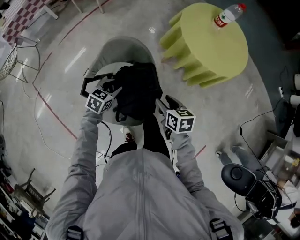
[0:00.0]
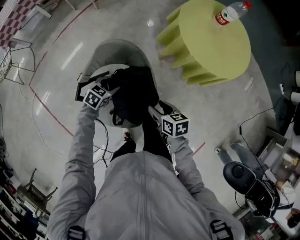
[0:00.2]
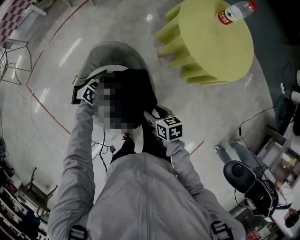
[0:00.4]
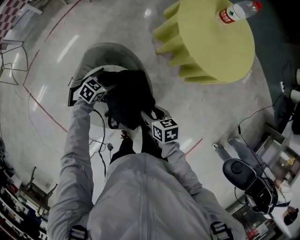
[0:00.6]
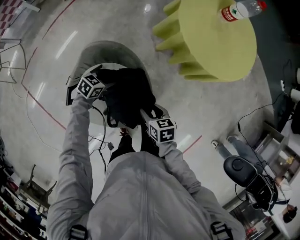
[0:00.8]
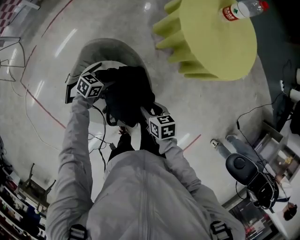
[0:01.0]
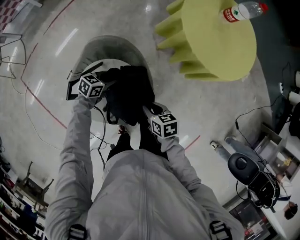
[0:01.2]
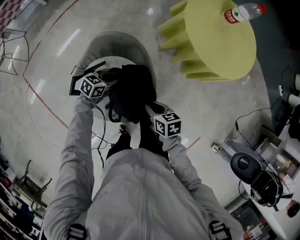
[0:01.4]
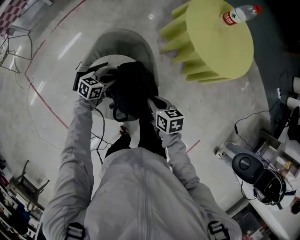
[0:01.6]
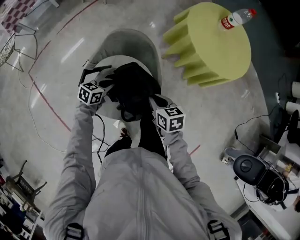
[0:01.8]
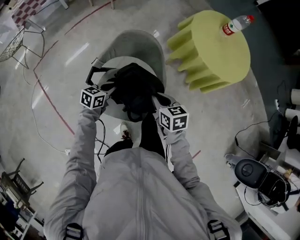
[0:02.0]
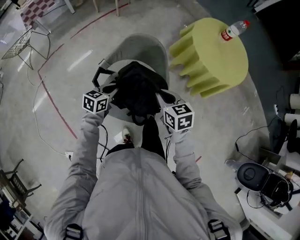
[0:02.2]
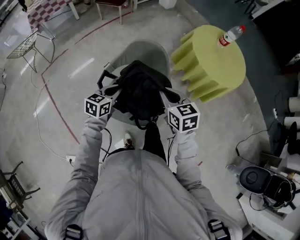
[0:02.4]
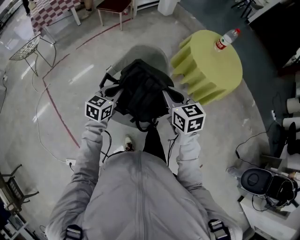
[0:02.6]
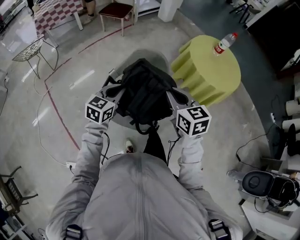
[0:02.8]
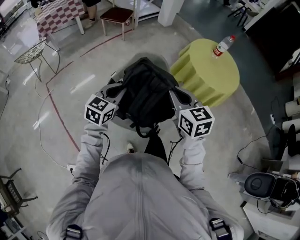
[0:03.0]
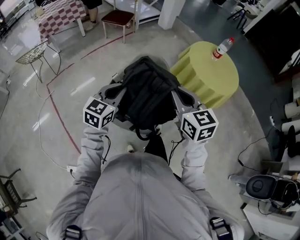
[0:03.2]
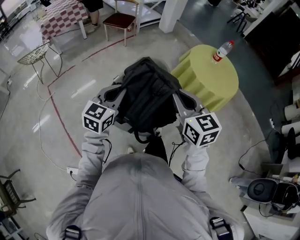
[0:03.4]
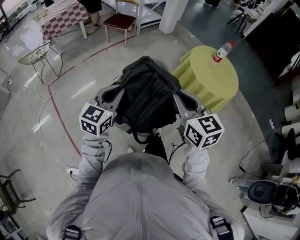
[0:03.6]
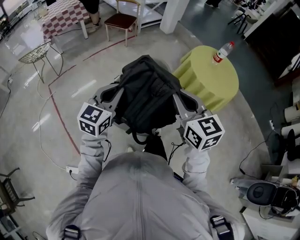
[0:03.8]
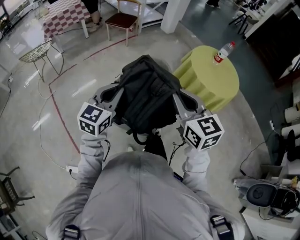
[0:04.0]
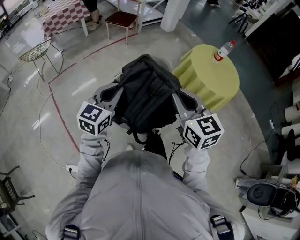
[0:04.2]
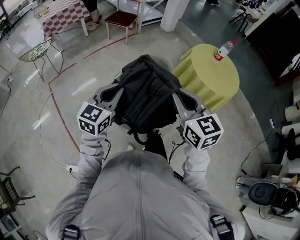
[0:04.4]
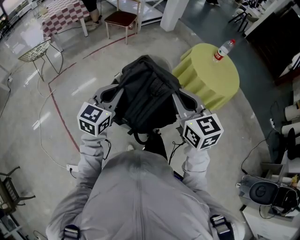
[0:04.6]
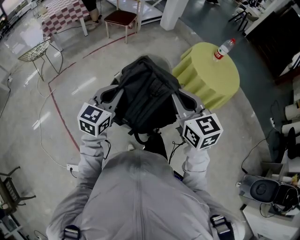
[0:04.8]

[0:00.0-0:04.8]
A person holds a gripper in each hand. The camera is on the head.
0:00.0 to 0:01.6: The left gripper moves downward, some 10 cm, swivels approximately 20 degrees, and closes up. The right gripper goes approximately 10 cm to the left and downward, and closes up.
0:01.6 to 0:03.2: The right gripper shifts some 35 cm upward, and changes its angle by roughly 40 degrees. Meanwhile the left gripper heads upward and backward, covering about 40 cm, and swivels approximately 40 degrees.
0:03.2 to 0:04.8: The left gripper shifts by about 5 cm.

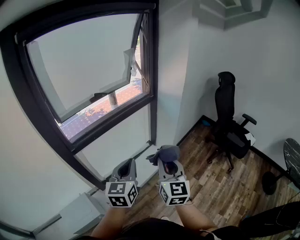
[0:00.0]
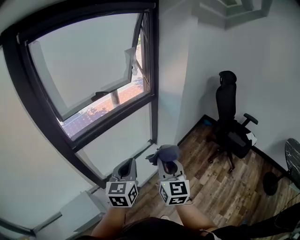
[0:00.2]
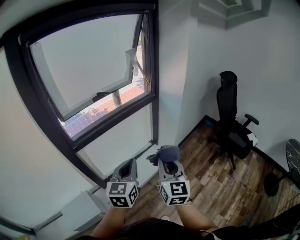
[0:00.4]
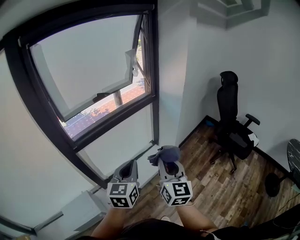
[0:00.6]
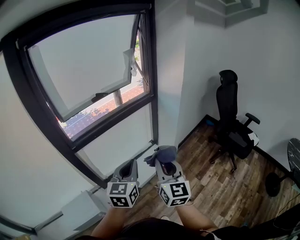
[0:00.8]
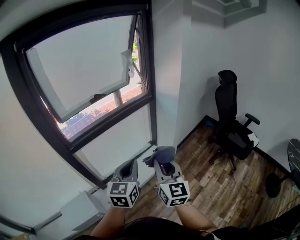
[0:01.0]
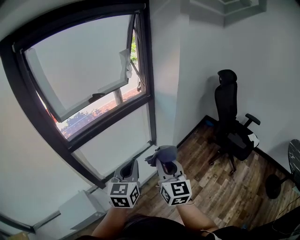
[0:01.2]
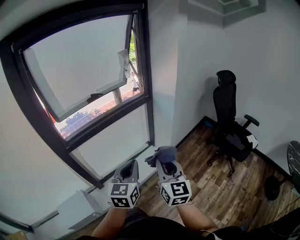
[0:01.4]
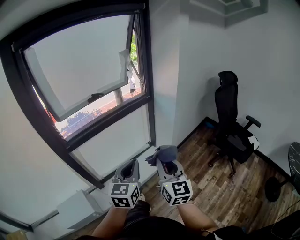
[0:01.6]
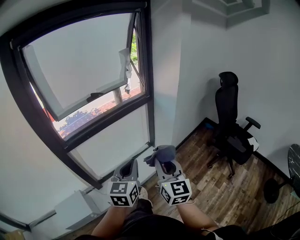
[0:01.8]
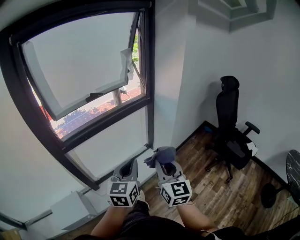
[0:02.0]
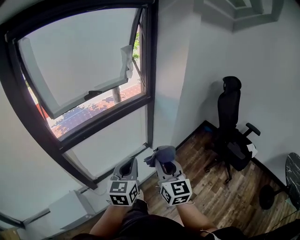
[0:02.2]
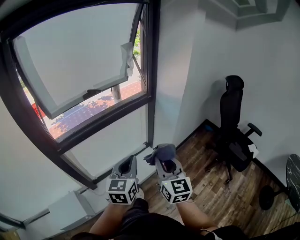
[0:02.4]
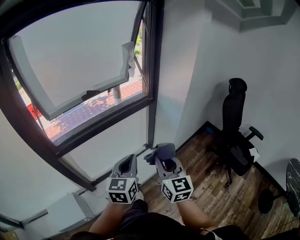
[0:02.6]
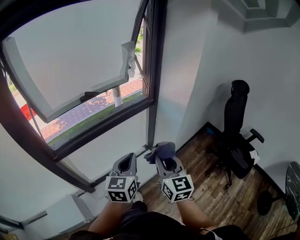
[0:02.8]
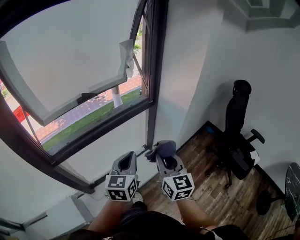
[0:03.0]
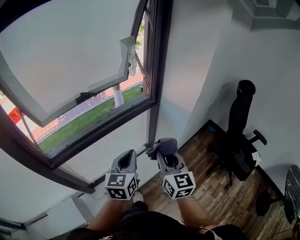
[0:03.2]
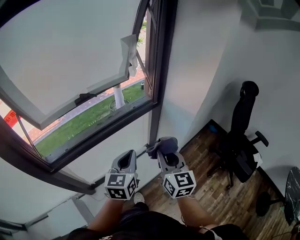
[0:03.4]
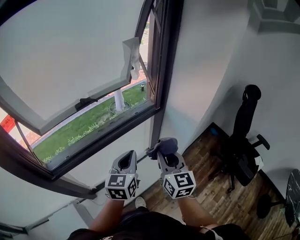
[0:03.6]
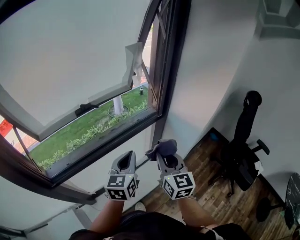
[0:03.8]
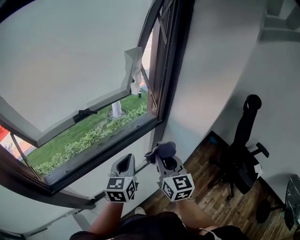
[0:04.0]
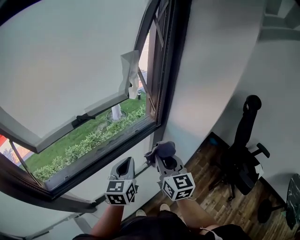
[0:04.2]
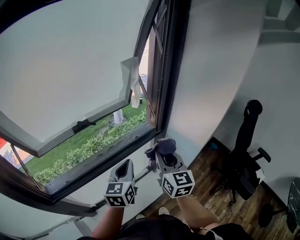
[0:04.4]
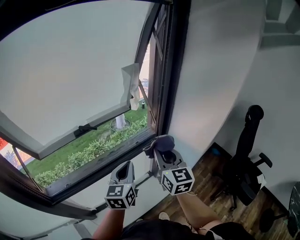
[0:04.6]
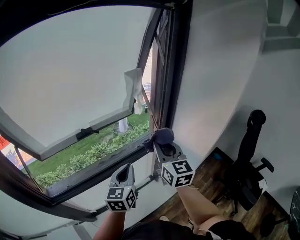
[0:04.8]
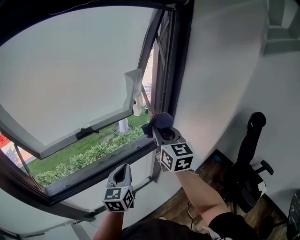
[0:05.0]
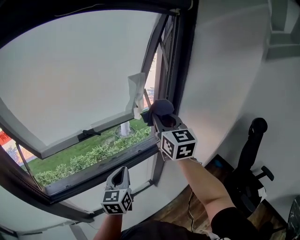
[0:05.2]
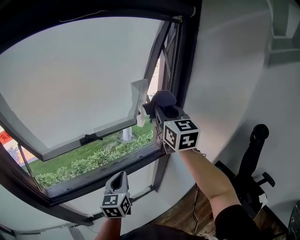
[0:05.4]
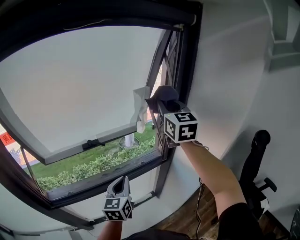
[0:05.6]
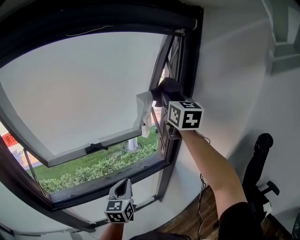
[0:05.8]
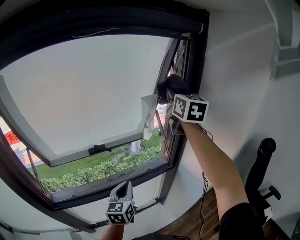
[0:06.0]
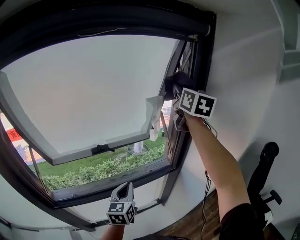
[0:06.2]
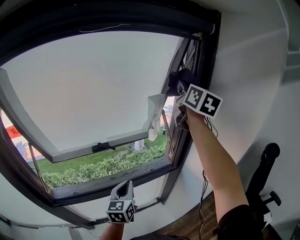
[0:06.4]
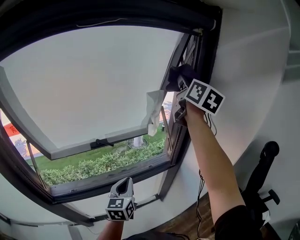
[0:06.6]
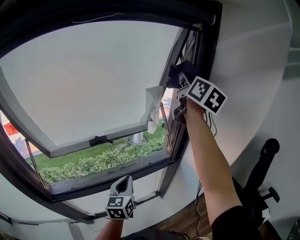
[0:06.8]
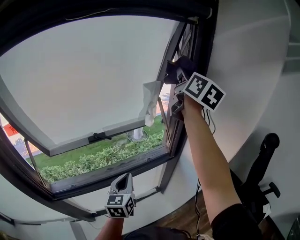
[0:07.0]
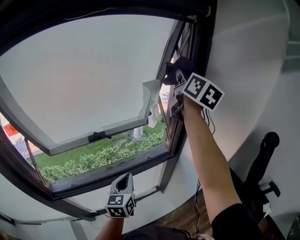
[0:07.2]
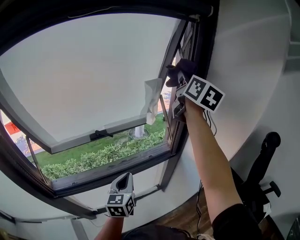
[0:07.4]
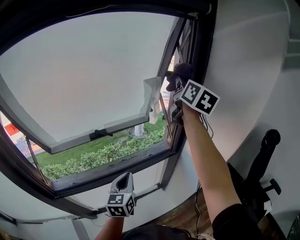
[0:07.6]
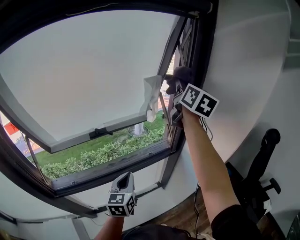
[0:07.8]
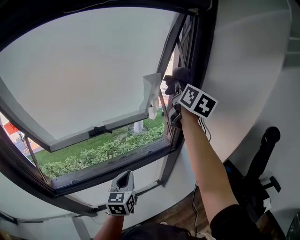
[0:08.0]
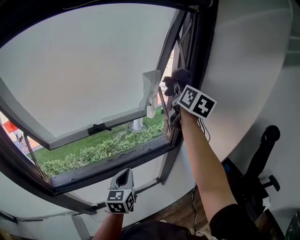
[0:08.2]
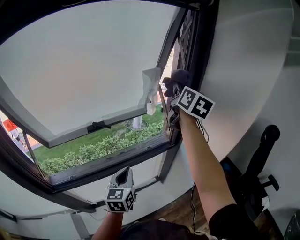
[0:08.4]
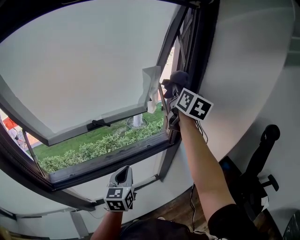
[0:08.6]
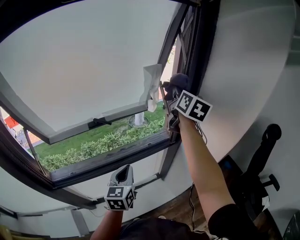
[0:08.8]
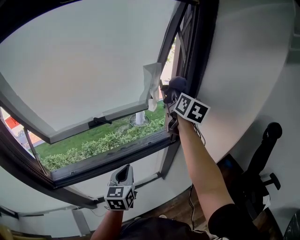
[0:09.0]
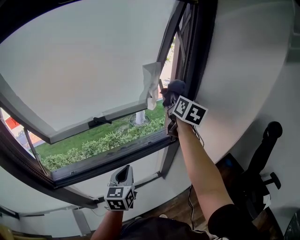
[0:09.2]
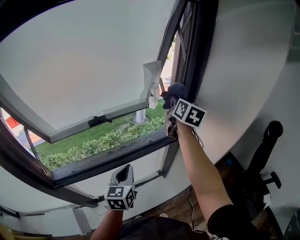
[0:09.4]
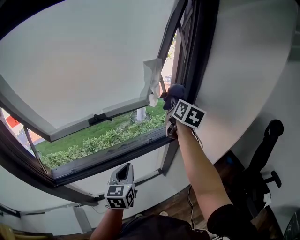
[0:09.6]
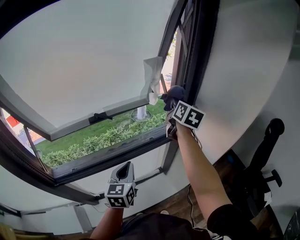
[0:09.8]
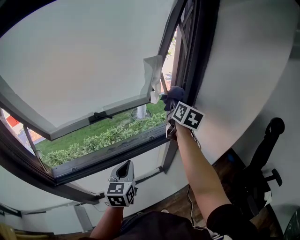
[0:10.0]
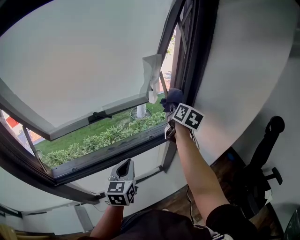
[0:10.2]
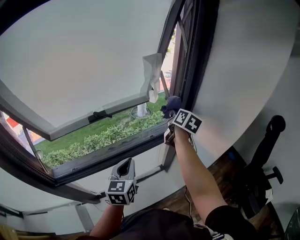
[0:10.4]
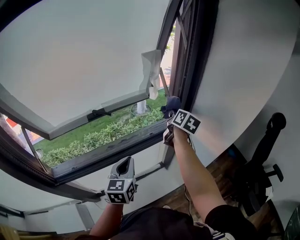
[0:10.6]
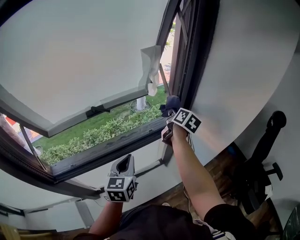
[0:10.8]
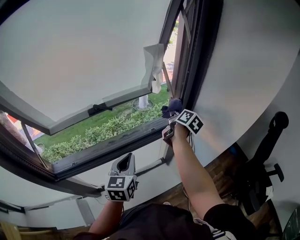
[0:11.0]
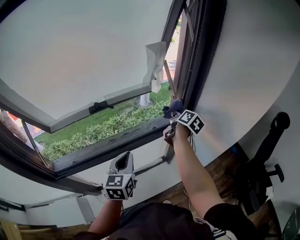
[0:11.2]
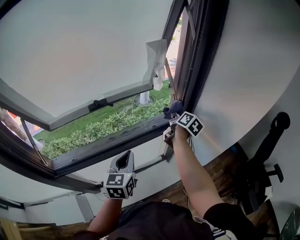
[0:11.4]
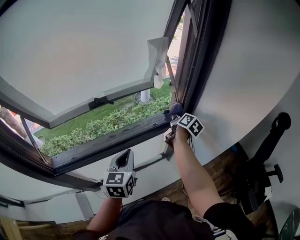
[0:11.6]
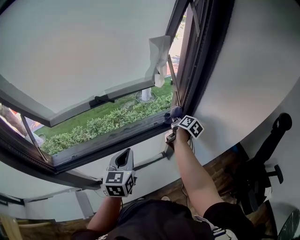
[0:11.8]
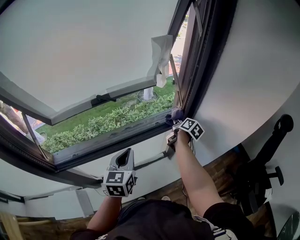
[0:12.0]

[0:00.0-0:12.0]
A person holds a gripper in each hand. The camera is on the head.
0:00.0 to 0:01.6: Both grippers move to the right, about 10 cm.
0:01.6 to 0:03.0: The two grippers go roughly 25 cm forward.
0:03.0 to 0:04.4: The two grippers go about 20 cm forward.
0:04.4 to 0:06.0: The right gripper travels upward and forward by roughly 40 cm.
0:06.0 to 0:07.6: The right gripper changes place by approximately 5 cm, and swivels roughly 20 degrees.
0:07.6 to 0:09.0: The right gripper shifts roughly 10 cm downward.
0:09.0 to 0:10.4: The right gripper heads downward, covering roughly 15 cm, and turns by roughly 20 degrees.
0:10.4 to 0:12.0: The right gripper is displaced downward by roughly 20 cm, and rotates some 30 degrees.

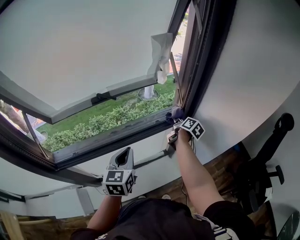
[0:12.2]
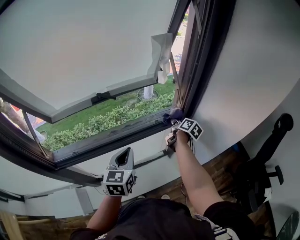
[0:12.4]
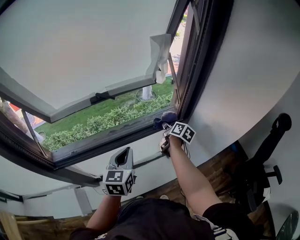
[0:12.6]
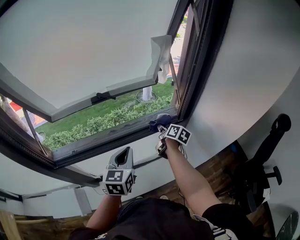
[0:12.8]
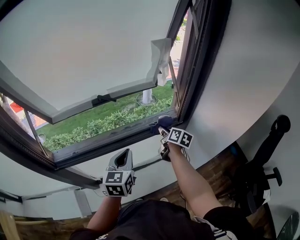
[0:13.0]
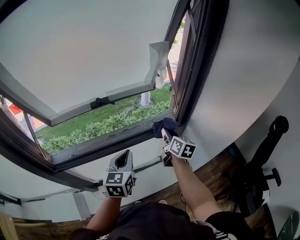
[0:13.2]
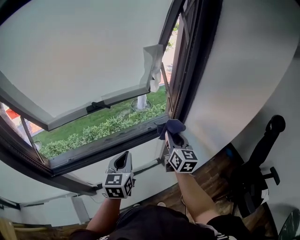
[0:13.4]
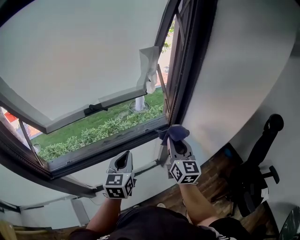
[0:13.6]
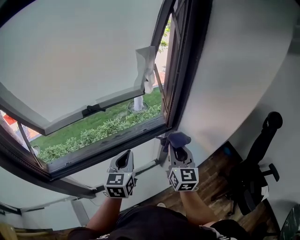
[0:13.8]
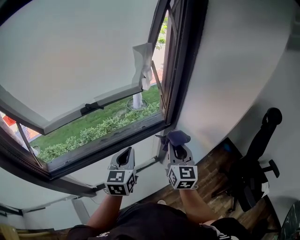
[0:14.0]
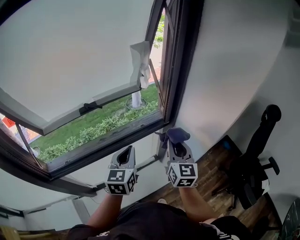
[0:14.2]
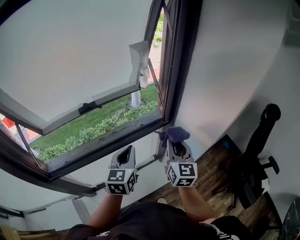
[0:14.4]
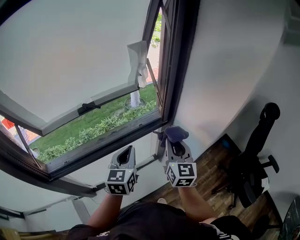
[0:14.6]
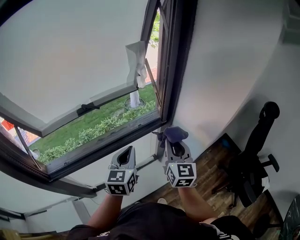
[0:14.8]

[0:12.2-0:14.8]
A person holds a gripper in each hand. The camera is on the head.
0:12.2 to 0:13.4: The right gripper is displaced upward and backward by some 20 cm, and rolls counterclockwise, seen from behind, by about 50 degrees.
0:13.4 to 0:14.8: The right gripper goes approximately 5 cm backward; the left gripper heads to the right, covering some 5 cm.

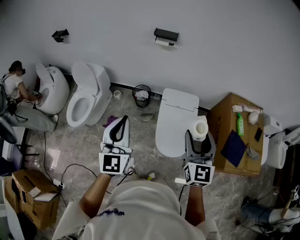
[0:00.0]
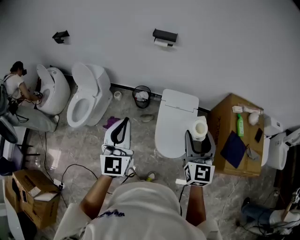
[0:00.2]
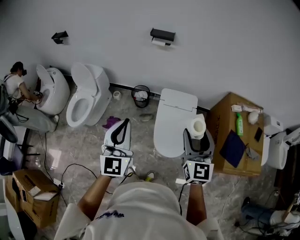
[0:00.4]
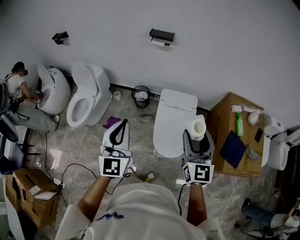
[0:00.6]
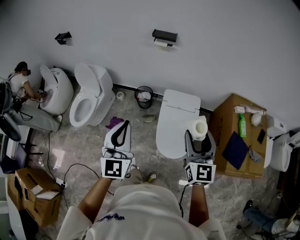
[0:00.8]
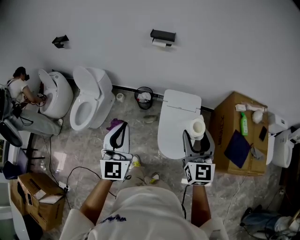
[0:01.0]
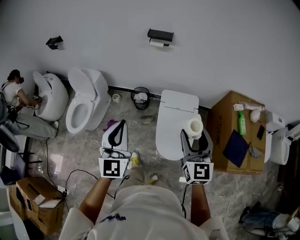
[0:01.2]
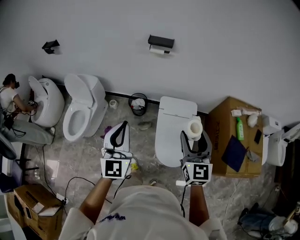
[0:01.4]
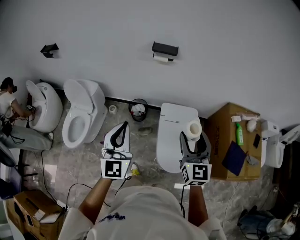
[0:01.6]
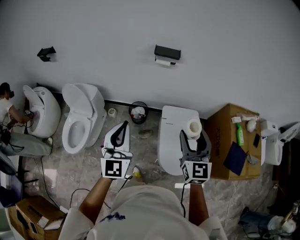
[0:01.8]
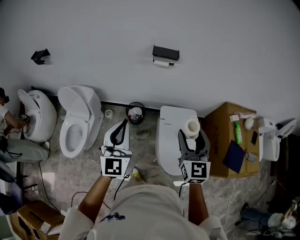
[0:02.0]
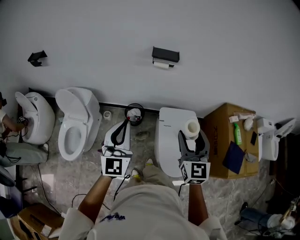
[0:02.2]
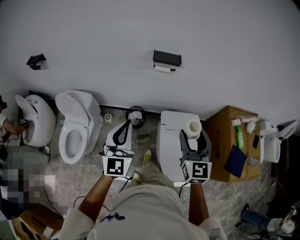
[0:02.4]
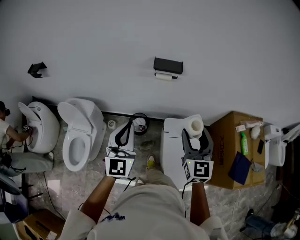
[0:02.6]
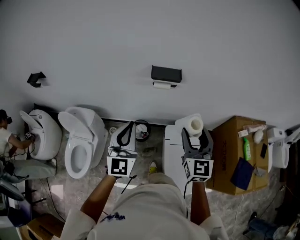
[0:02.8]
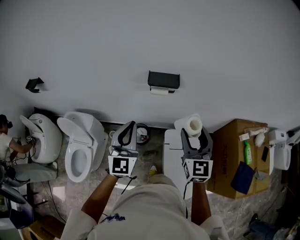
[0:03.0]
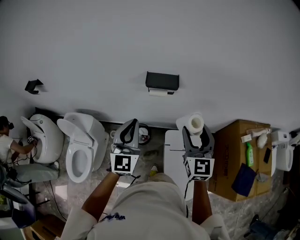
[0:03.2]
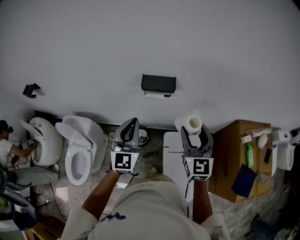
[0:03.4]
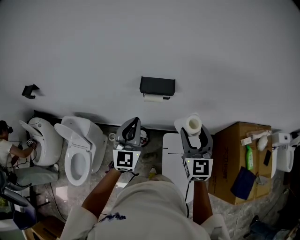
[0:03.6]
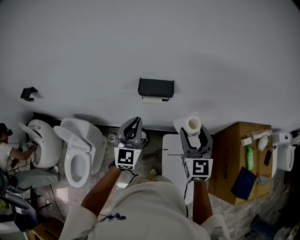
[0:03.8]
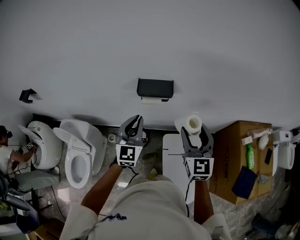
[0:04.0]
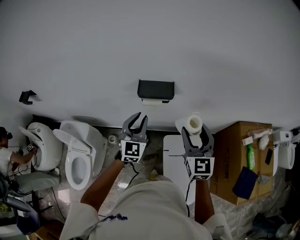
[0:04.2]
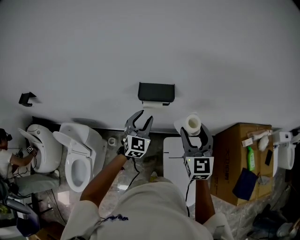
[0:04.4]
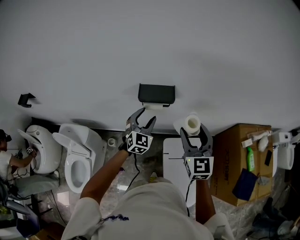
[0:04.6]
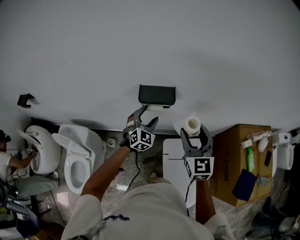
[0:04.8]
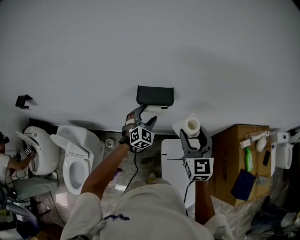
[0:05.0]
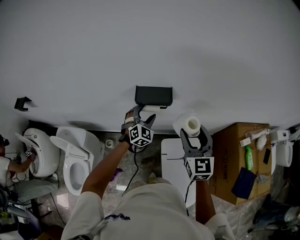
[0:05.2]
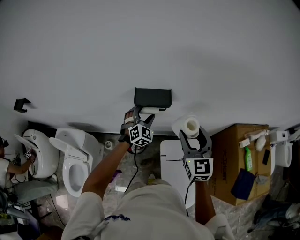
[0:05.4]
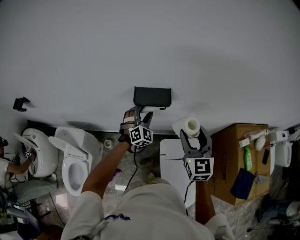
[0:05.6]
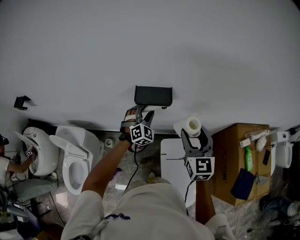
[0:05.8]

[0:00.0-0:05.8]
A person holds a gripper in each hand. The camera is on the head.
0:00.0 to 0:01.4: The grippers both shift forward by about 10 cm.
0:01.4 to 0:02.8: The two grippers go roughly 30 cm forward.
0:02.8 to 0:04.4: The left gripper moves forward and downward, some 25 cm, turns by about 20 degrees, and opens. The right gripper goes some 15 cm forward.
0:04.4 to 0:05.8: The left gripper goes some 10 cm forward and downward, and turns by roughly 30 degrees.
